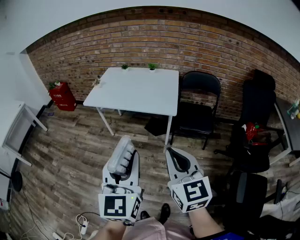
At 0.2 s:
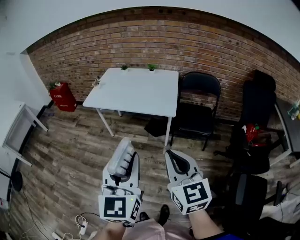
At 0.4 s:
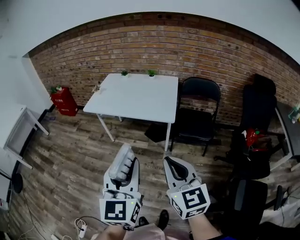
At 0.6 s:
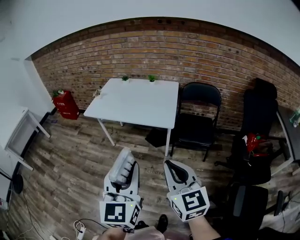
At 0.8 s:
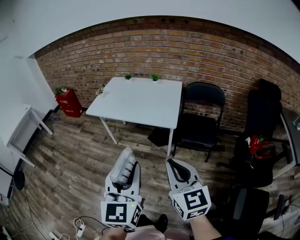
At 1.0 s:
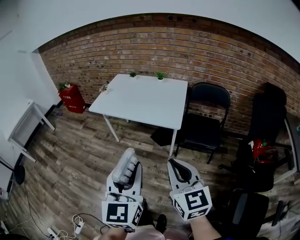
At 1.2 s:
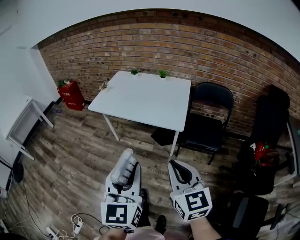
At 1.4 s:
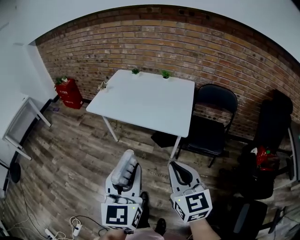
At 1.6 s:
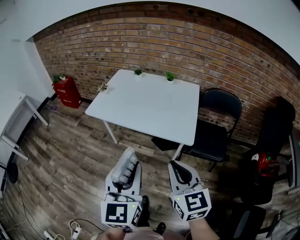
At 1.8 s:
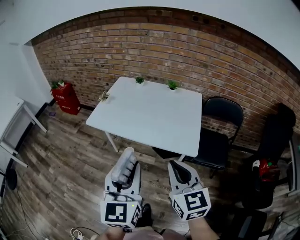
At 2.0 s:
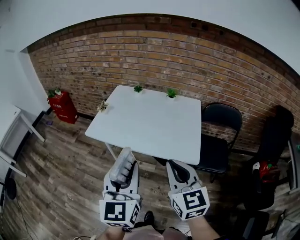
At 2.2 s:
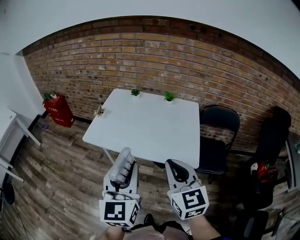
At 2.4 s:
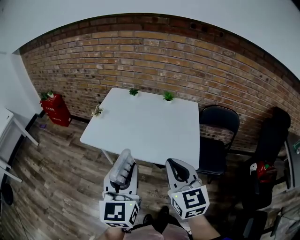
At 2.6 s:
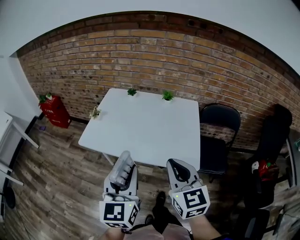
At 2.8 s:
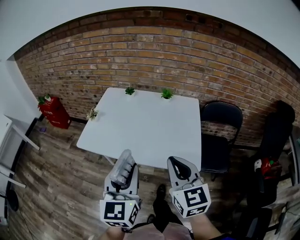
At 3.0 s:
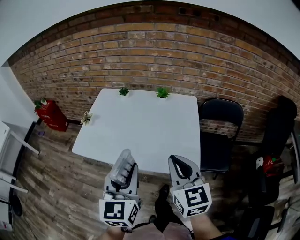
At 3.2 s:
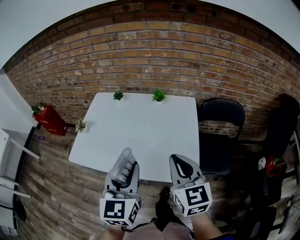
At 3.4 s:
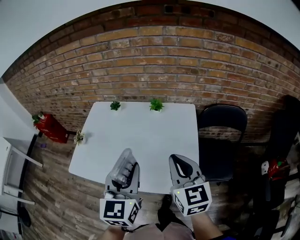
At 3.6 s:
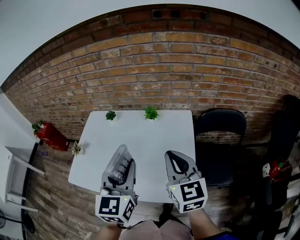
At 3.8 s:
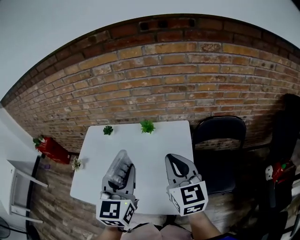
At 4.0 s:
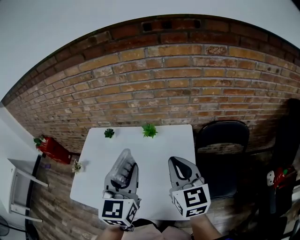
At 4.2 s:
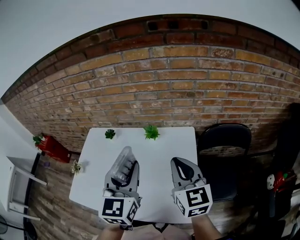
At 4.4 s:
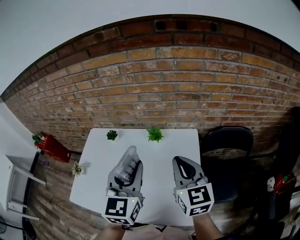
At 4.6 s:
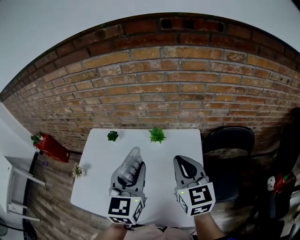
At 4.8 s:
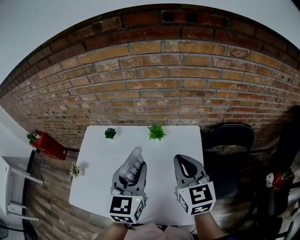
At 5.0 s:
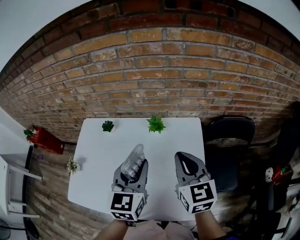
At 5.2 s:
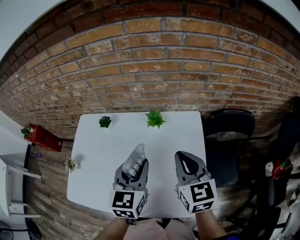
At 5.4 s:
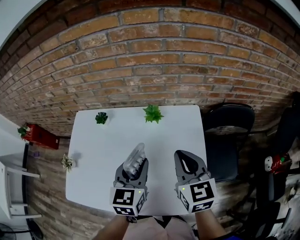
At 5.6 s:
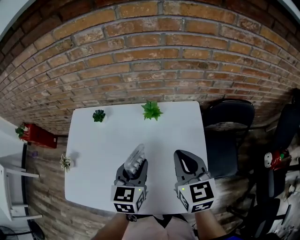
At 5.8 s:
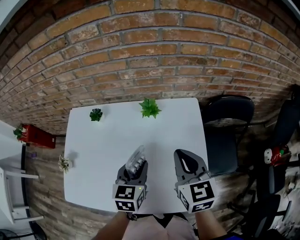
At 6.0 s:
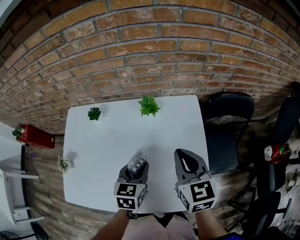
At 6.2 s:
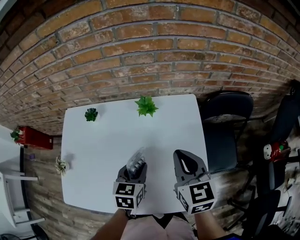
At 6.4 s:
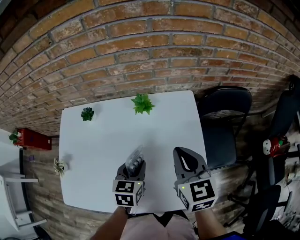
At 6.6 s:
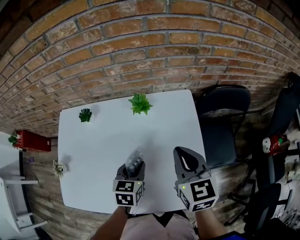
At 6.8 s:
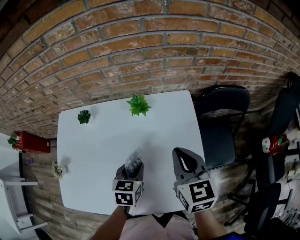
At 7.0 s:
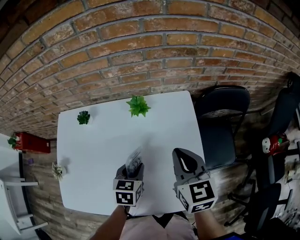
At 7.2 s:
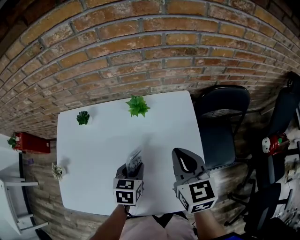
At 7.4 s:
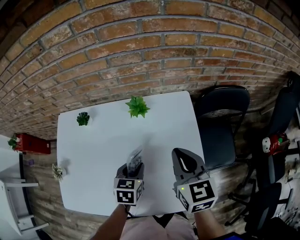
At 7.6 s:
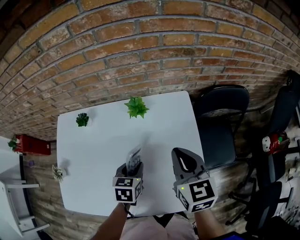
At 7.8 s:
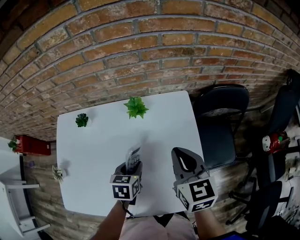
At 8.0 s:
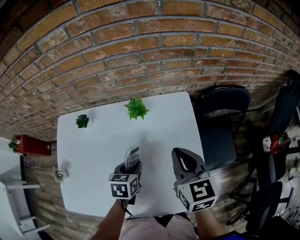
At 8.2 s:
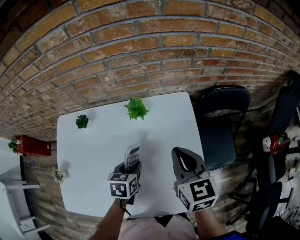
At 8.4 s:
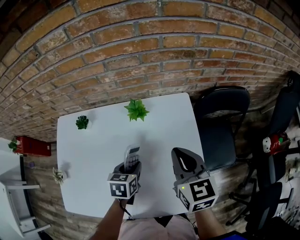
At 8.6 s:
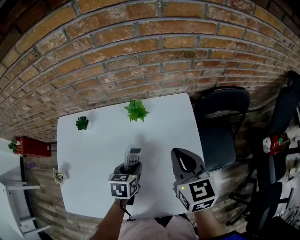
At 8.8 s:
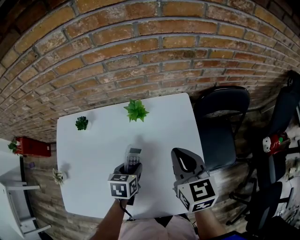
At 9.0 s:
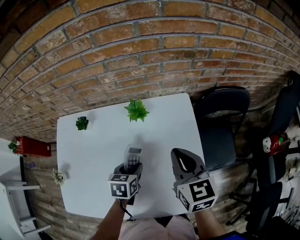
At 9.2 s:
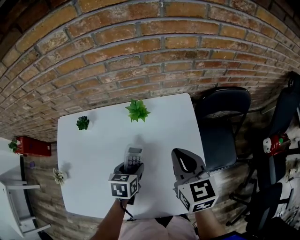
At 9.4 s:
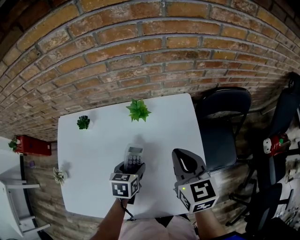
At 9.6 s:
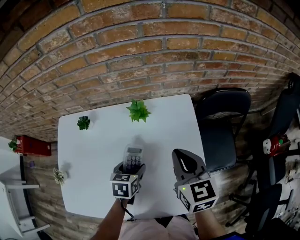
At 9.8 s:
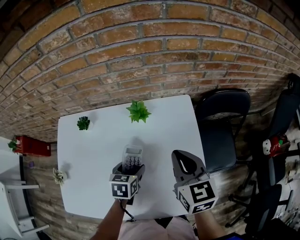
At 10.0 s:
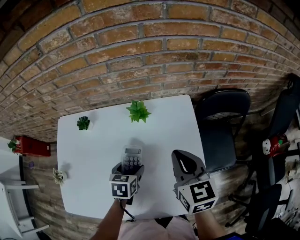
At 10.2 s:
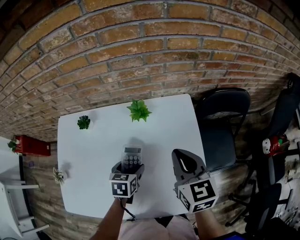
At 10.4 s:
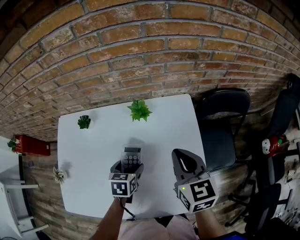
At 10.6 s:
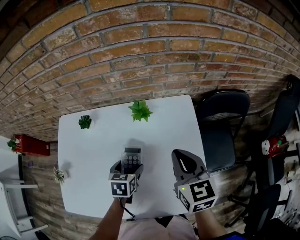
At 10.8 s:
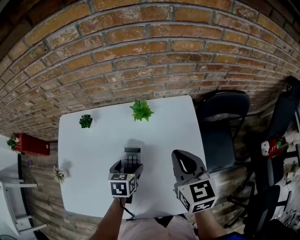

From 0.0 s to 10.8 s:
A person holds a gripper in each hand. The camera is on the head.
From 0.0 s to 1.6 s: The two grippers go about 20 cm forward.
From 1.6 s to 3.0 s: The grippers both shift forward by roughly 25 cm.
From 3.0 s to 4.6 s: Both grippers move forward, approximately 30 cm.
From 4.6 s to 6.2 s: The right gripper heads downward, covering roughly 10 cm, while the left gripper heads downward, covering roughly 25 cm, and swivels some 30 degrees.
From 6.2 s to 7.8 s: The left gripper heads downward, covering roughly 5 cm.
From 7.8 s to 9.2 s: The grippers move only a little.
From 9.2 s to 10.8 s: The left gripper opens.

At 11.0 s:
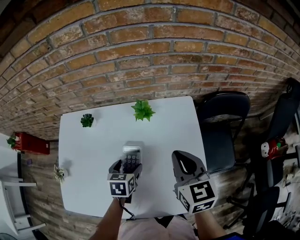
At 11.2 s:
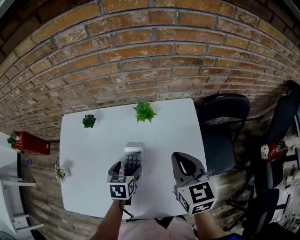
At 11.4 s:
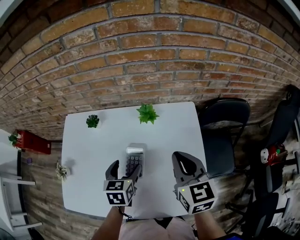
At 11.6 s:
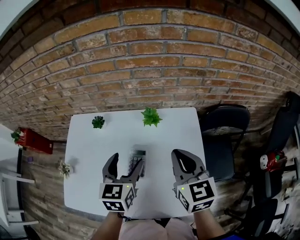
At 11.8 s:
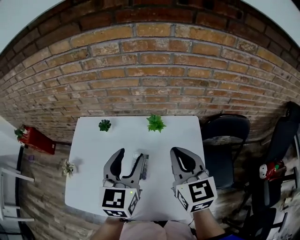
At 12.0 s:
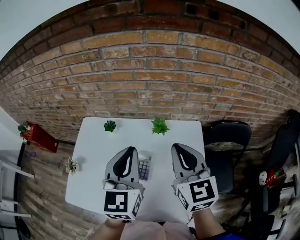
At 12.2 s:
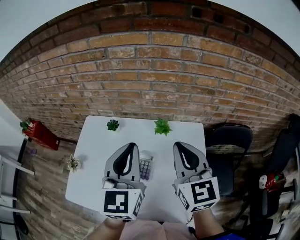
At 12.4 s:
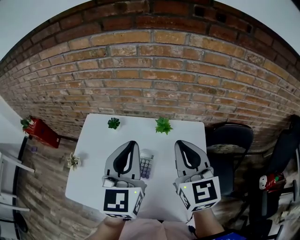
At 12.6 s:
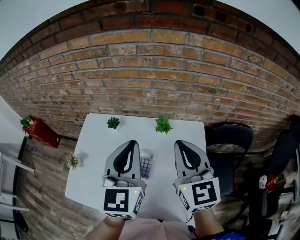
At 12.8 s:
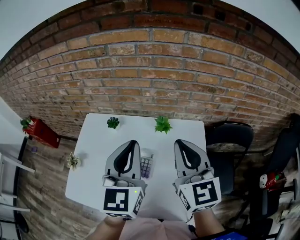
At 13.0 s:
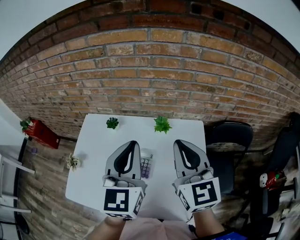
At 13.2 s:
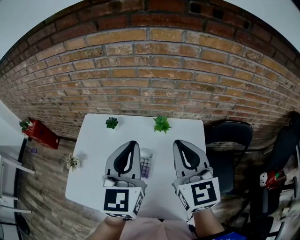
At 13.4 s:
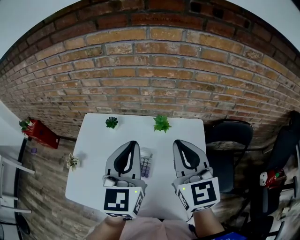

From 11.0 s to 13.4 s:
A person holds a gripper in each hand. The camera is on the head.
From 11.0 s to 12.2 s: The left gripper goes roughly 35 cm upward, points its fingers about 50 degrees further upward, and closes its fingers; the right gripper heads upward, covering roughly 15 cm, and turns by some 20 degrees.
From 12.2 s to 13.4 s: Both grippers stay put.

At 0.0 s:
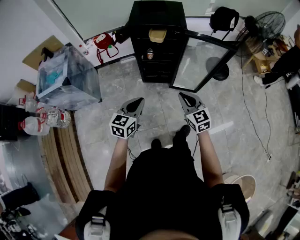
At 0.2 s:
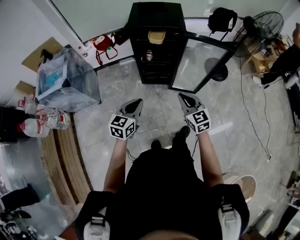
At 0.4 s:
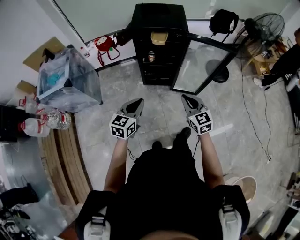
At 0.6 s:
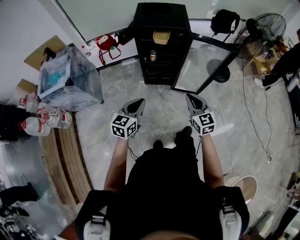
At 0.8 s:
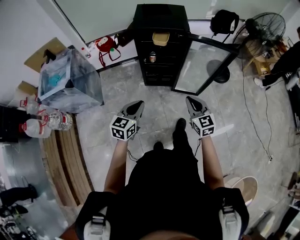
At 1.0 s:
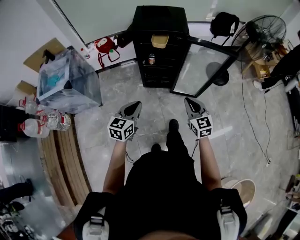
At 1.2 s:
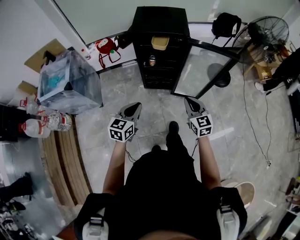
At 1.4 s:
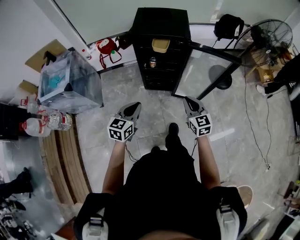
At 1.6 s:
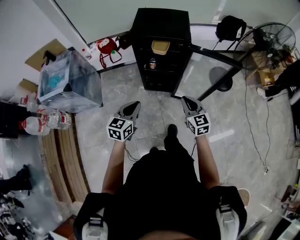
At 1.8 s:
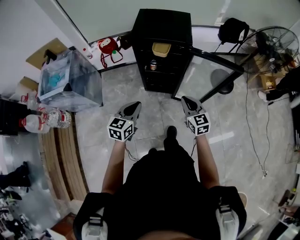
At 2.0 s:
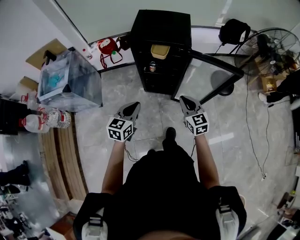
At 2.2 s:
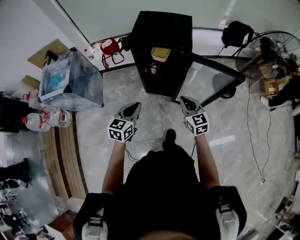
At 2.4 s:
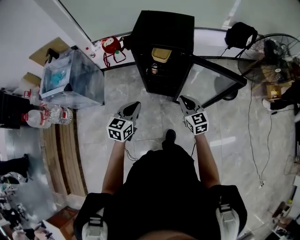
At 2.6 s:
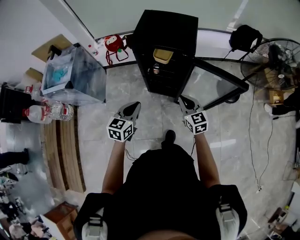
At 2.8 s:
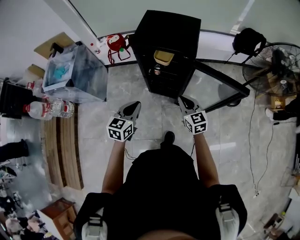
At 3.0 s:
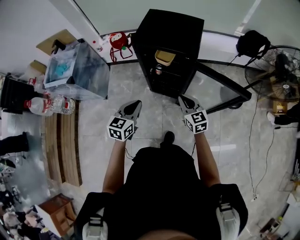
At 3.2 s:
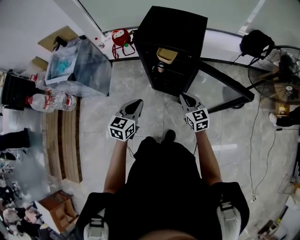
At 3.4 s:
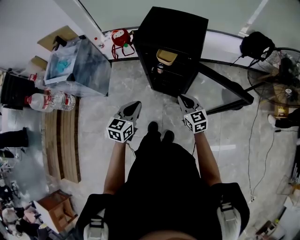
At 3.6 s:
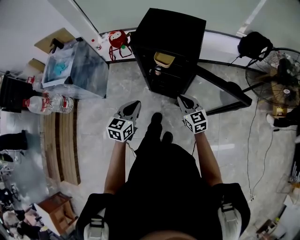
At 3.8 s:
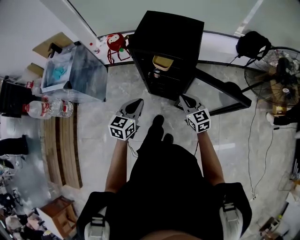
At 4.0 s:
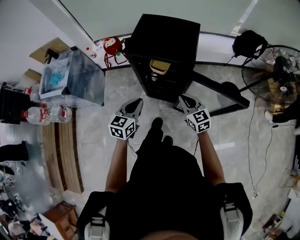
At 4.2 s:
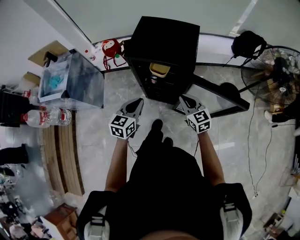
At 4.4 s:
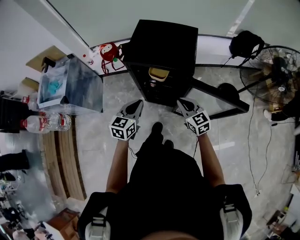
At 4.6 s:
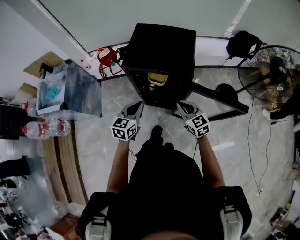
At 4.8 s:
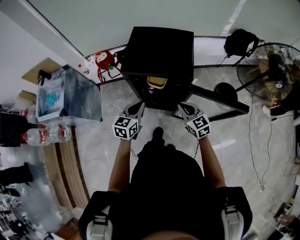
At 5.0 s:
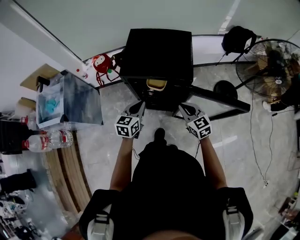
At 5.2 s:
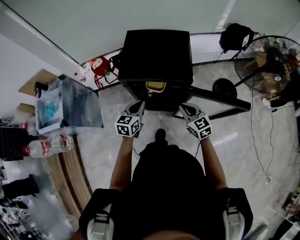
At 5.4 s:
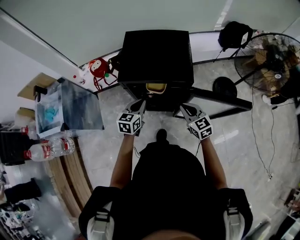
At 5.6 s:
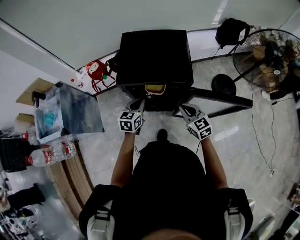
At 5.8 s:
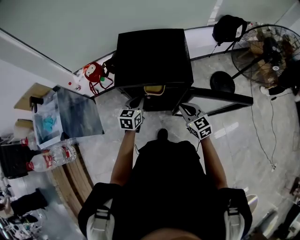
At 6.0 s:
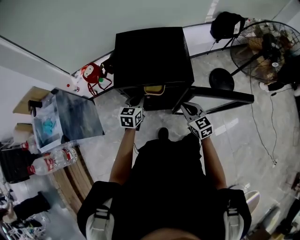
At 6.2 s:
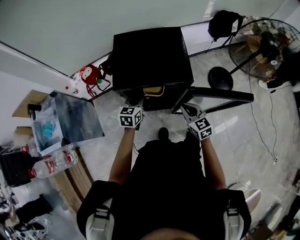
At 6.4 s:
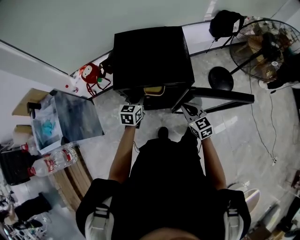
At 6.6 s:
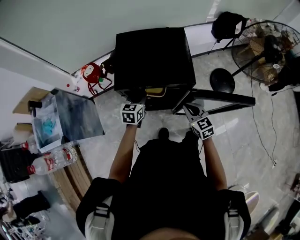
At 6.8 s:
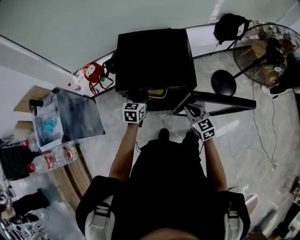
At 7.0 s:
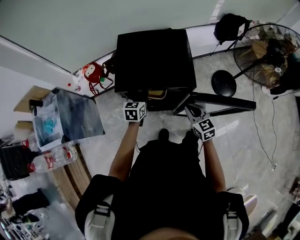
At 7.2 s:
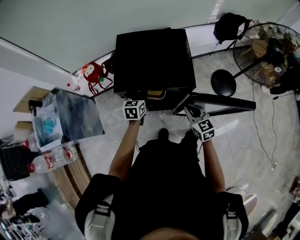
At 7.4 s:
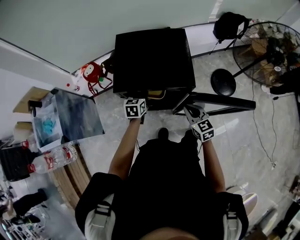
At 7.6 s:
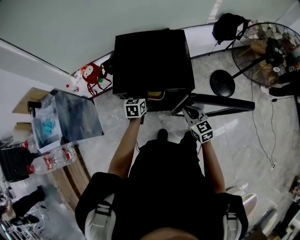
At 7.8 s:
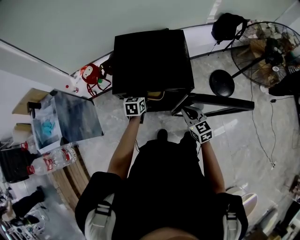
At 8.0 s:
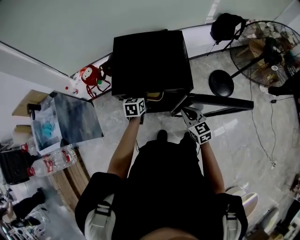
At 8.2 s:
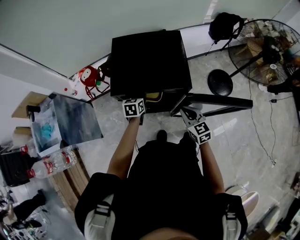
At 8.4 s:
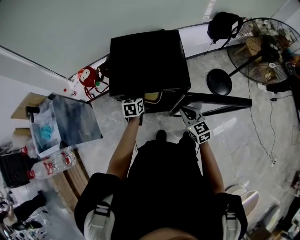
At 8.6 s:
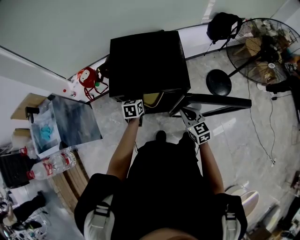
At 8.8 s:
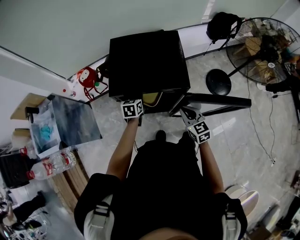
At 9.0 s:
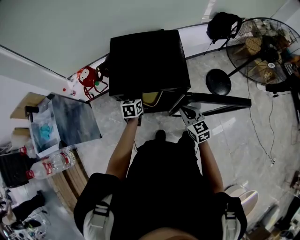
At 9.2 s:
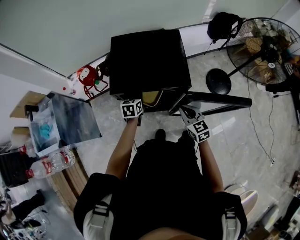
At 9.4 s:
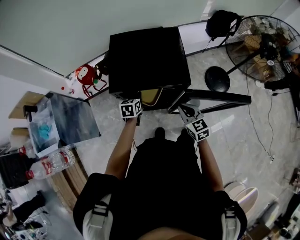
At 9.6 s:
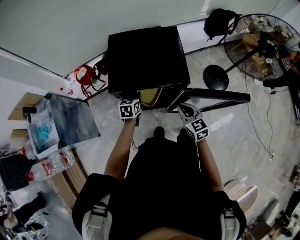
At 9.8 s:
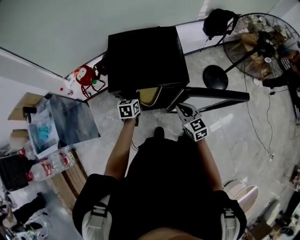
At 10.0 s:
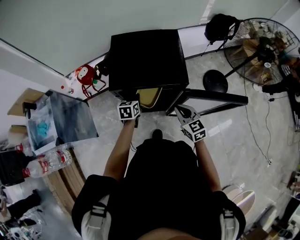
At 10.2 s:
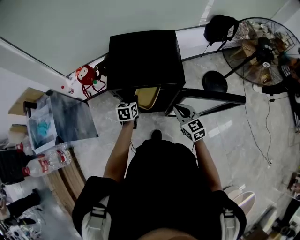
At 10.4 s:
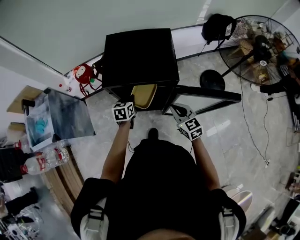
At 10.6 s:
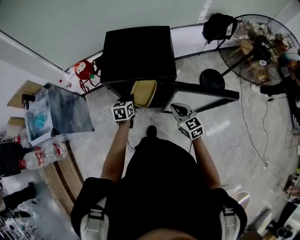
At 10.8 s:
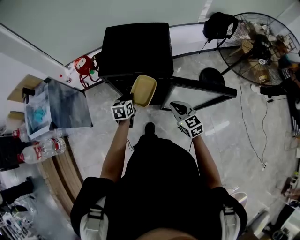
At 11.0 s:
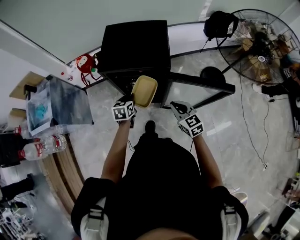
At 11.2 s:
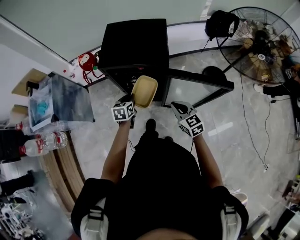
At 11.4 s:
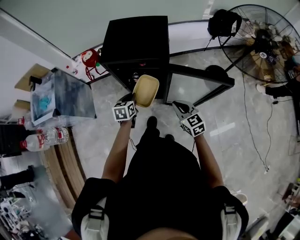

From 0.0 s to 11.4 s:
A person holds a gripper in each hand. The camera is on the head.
From 0.0 s to 1.4 s: The right gripper goes roughly 5 cm forward, while the left gripper shifts by roughly 5 cm.
From 1.4 s to 2.8 s: The right gripper goes roughly 15 cm forward; the left gripper goes about 15 cm forward and to the right.
From 2.8 s to 4.2 s: The two grippers go some 10 cm forward.
From 4.2 s to 5.6 s: The right gripper shifts about 5 cm forward, while the left gripper travels forward and downward by some 20 cm.
From 5.6 s to 7.2 s: The left gripper goes approximately 10 cm forward and downward, and opens its fingers.
From 7.2 s to 10.0 s: The grippers move only a little.
From 10.0 s to 11.4 s: The left gripper is displaced backward by approximately 20 cm. The right gripper shifts some 15 cm backward and to the right.
